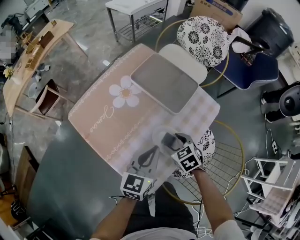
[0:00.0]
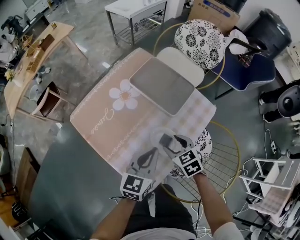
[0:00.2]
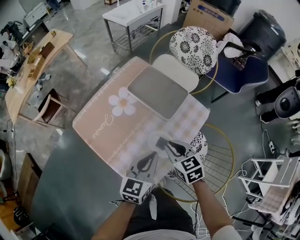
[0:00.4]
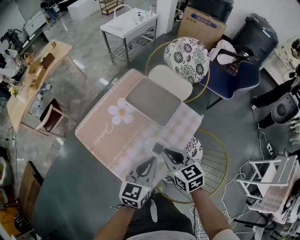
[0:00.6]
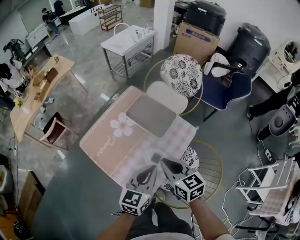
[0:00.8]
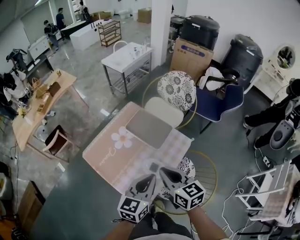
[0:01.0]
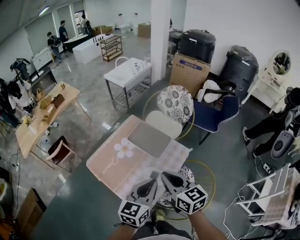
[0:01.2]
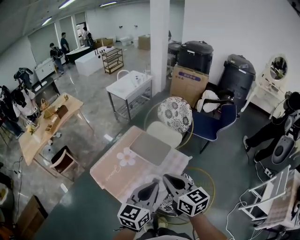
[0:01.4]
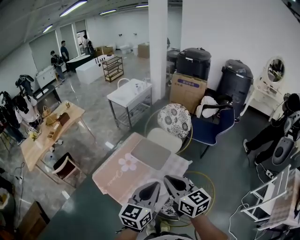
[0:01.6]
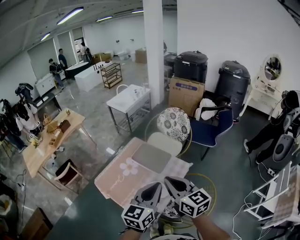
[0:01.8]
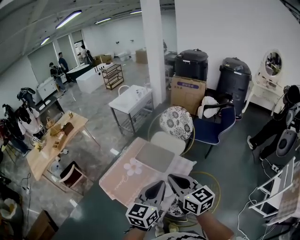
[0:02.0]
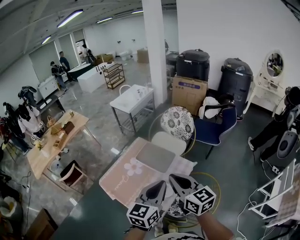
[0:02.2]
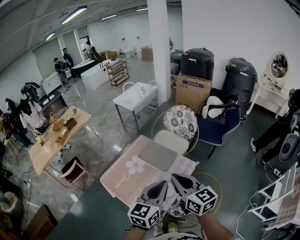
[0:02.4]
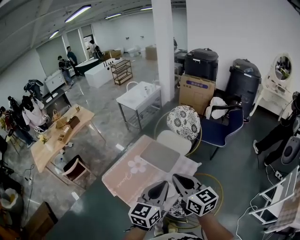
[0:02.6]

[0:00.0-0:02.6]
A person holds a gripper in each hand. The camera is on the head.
0:00.0 to 0:01.2: The left gripper shifts some 25 cm upward. The right gripper moves upward, some 40 cm, angles its fingers upward, by about 40 degrees, and closes its fingers.
0:01.2 to 0:02.6: Both grippers move upward, approximately 10 cm.

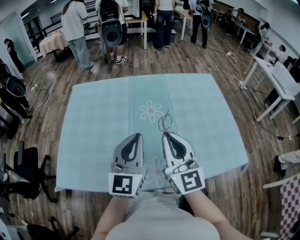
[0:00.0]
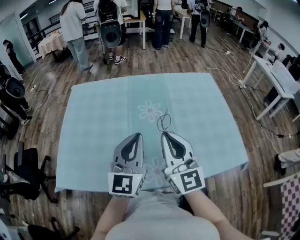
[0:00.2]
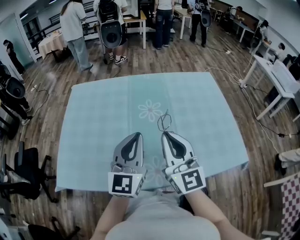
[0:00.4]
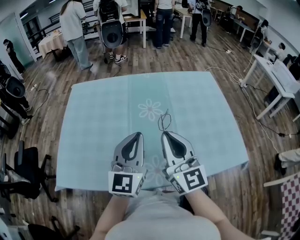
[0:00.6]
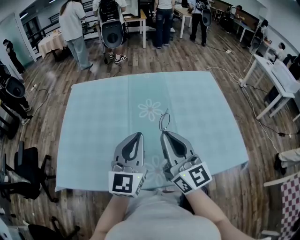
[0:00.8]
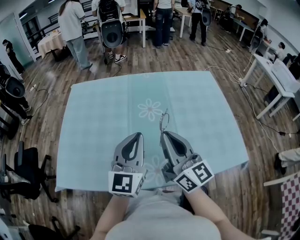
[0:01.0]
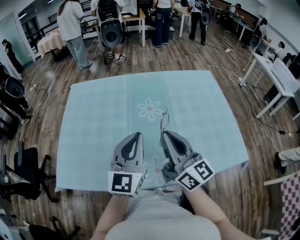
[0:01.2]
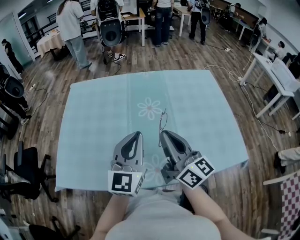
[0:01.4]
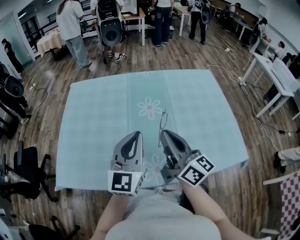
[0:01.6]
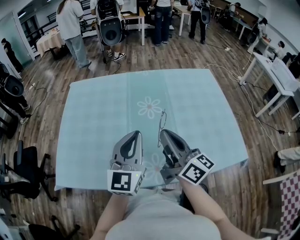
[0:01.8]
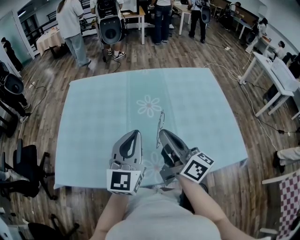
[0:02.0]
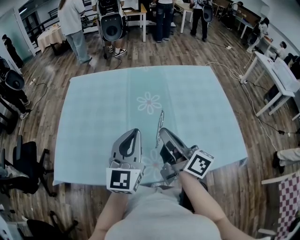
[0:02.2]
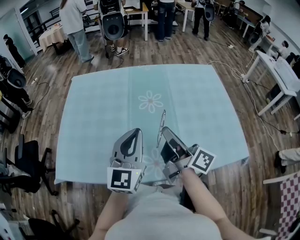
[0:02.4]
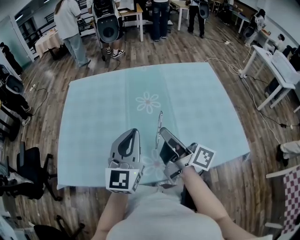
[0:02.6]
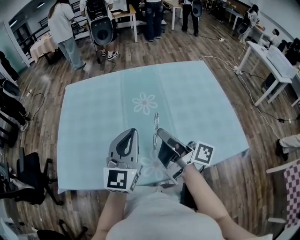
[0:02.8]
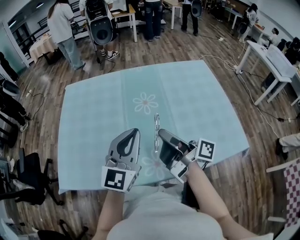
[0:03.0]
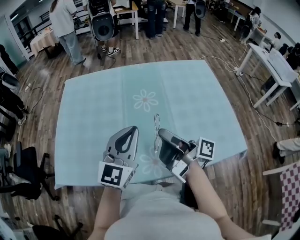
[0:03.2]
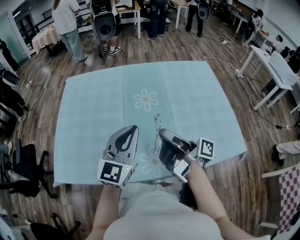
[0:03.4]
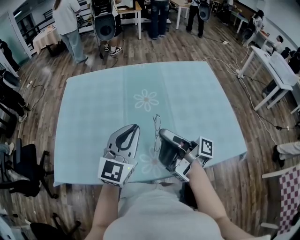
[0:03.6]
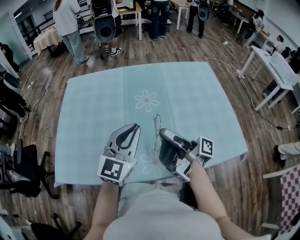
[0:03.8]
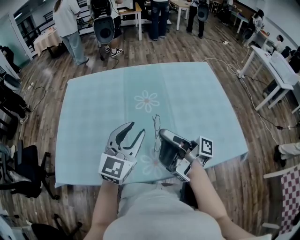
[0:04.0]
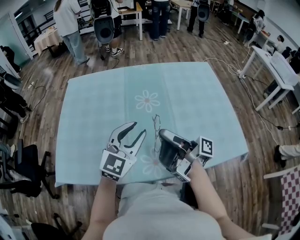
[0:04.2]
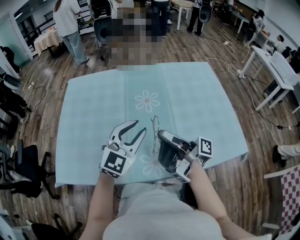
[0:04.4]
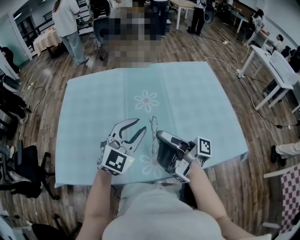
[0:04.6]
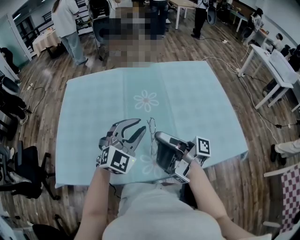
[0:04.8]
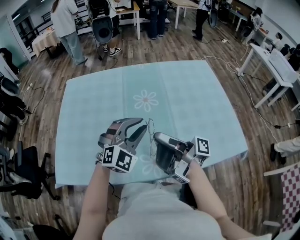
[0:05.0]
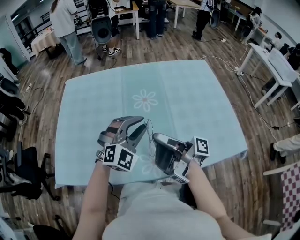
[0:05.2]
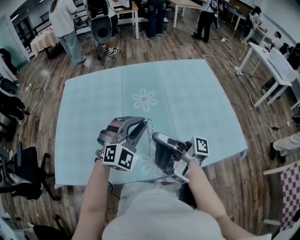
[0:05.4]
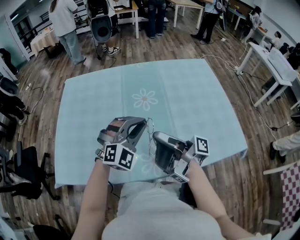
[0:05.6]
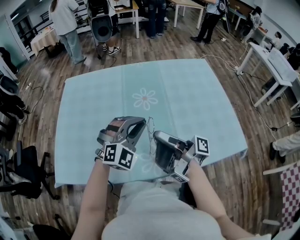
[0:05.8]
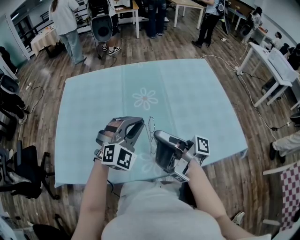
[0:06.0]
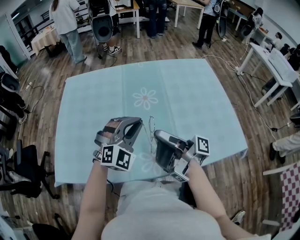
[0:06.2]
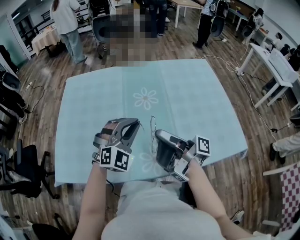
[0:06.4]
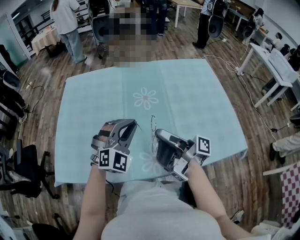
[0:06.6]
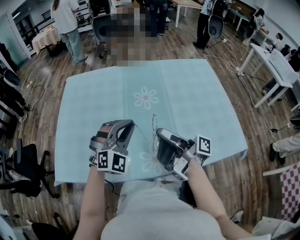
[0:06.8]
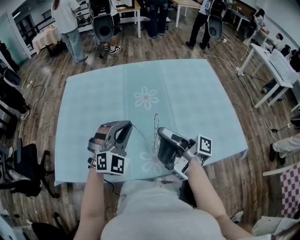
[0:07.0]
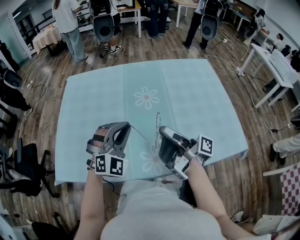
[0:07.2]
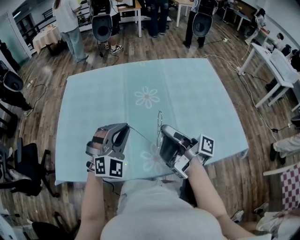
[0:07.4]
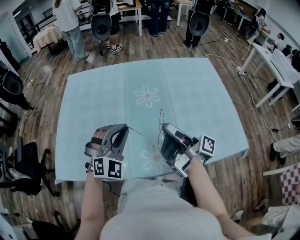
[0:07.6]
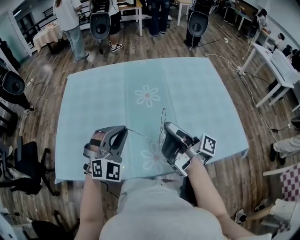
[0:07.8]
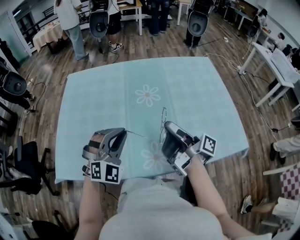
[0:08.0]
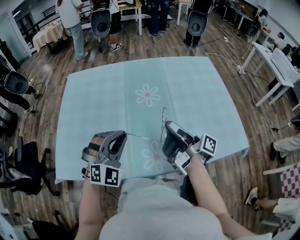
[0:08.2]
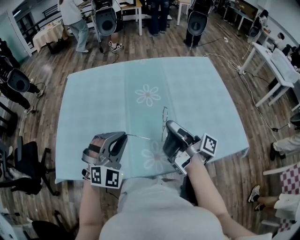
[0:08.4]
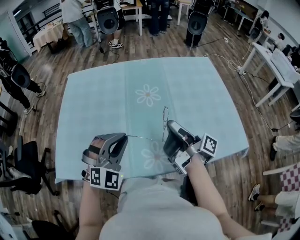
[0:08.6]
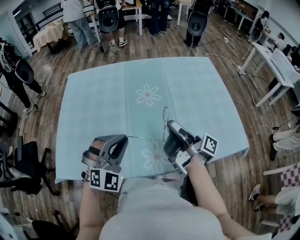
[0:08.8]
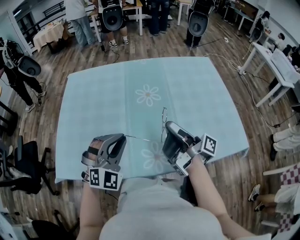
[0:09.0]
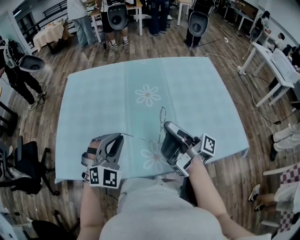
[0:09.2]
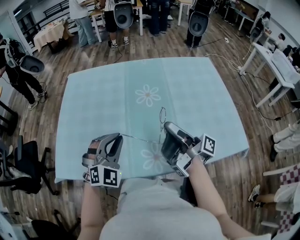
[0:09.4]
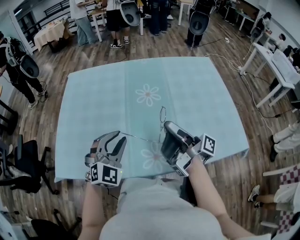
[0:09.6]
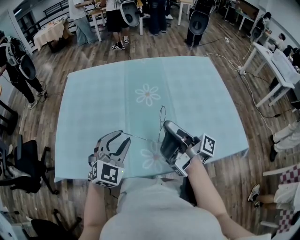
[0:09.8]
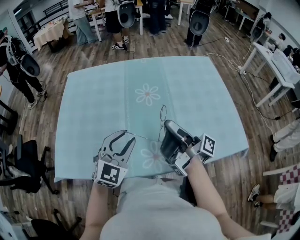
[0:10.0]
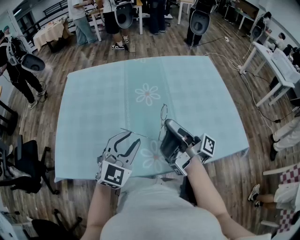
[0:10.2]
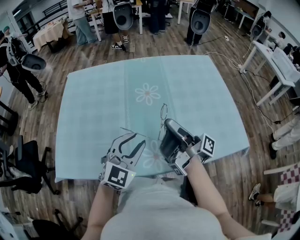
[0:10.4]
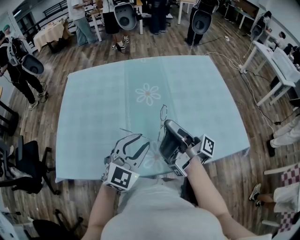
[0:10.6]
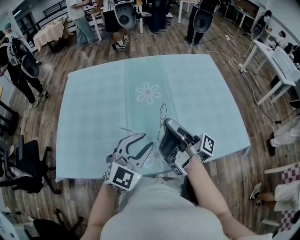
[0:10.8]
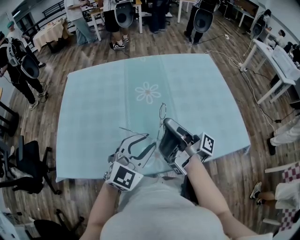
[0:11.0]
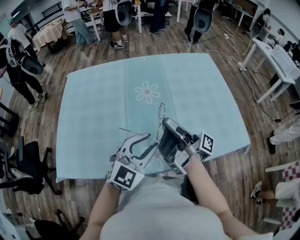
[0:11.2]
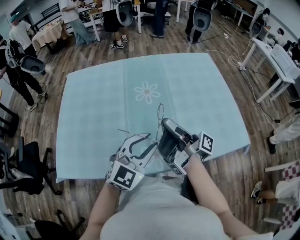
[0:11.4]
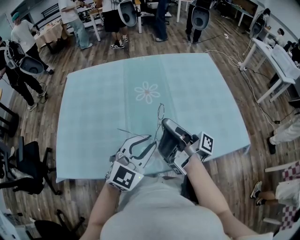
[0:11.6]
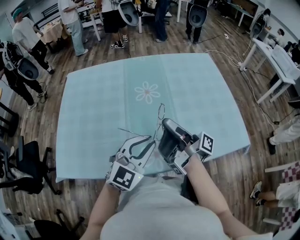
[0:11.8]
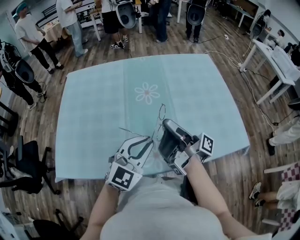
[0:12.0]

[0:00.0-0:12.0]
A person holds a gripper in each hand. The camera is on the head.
0:03.0 to 0:04.4: The left gripper ends up roughly 5 cm from where it was, rotates approximately 20 degrees, and opens up.
0:04.4 to 0:06.0: The left gripper changes its angle by approximately 30 degrees, and closes up.
0:06.0 to 0:07.6: The left gripper moves approximately 10 cm.
0:09.0 to 0:10.4: The left gripper shifts by about 5 cm, changes its angle by roughly 30 degrees, and opens.
0:10.4 to 0:12.0: The left gripper closes.

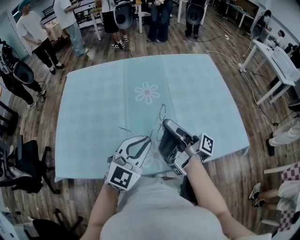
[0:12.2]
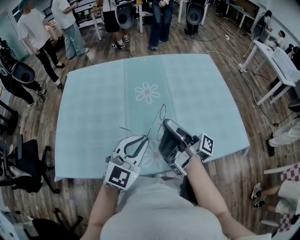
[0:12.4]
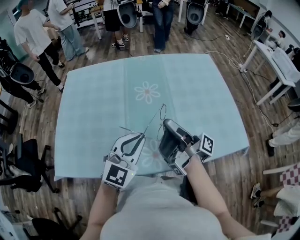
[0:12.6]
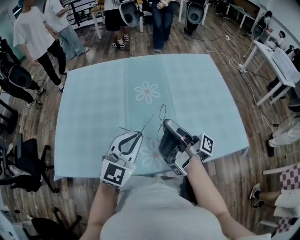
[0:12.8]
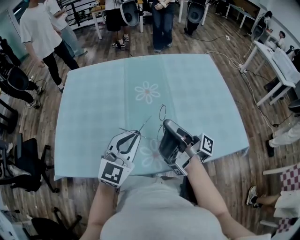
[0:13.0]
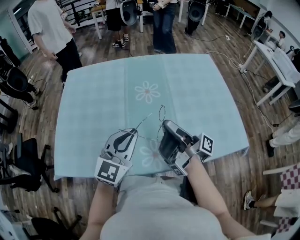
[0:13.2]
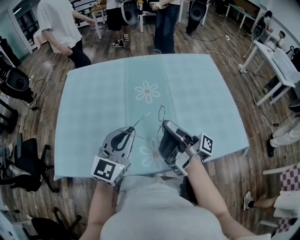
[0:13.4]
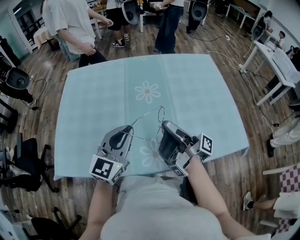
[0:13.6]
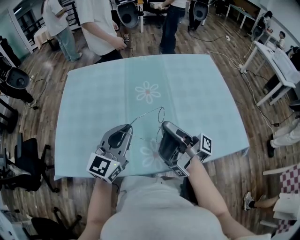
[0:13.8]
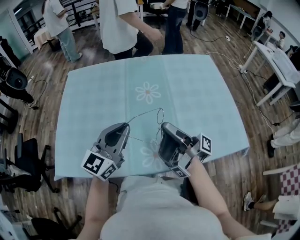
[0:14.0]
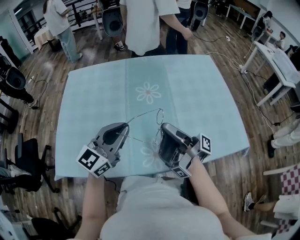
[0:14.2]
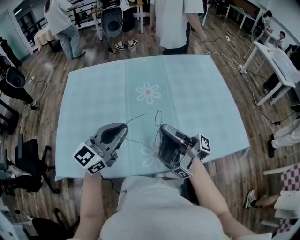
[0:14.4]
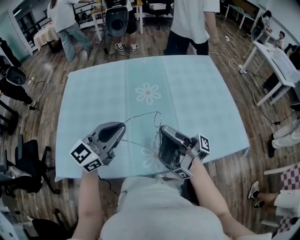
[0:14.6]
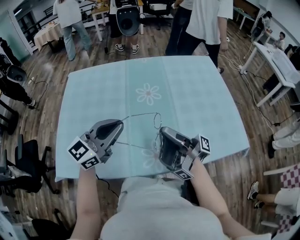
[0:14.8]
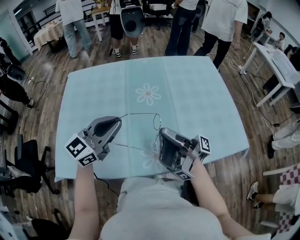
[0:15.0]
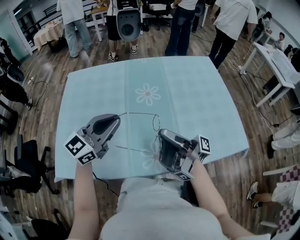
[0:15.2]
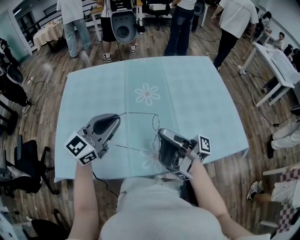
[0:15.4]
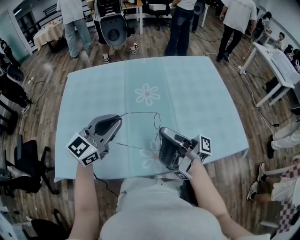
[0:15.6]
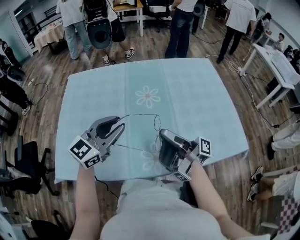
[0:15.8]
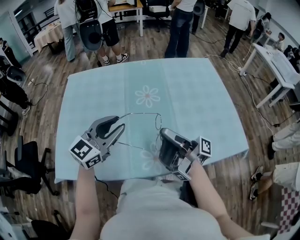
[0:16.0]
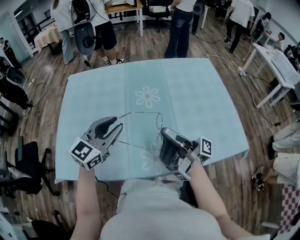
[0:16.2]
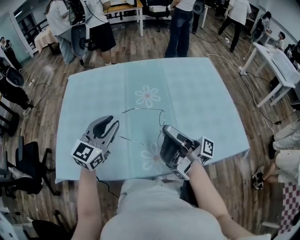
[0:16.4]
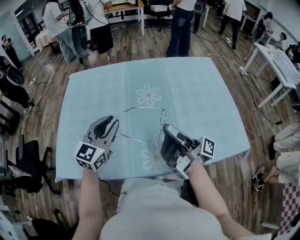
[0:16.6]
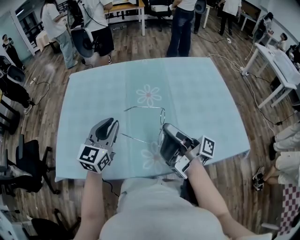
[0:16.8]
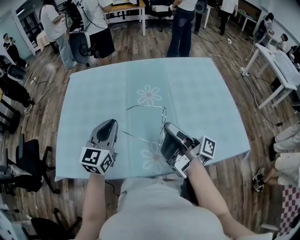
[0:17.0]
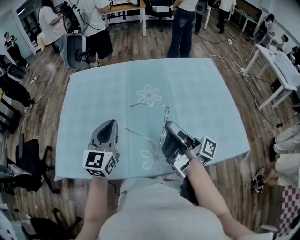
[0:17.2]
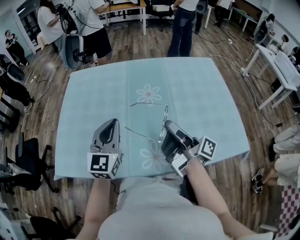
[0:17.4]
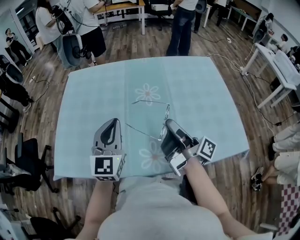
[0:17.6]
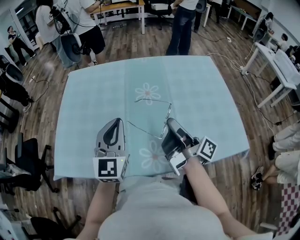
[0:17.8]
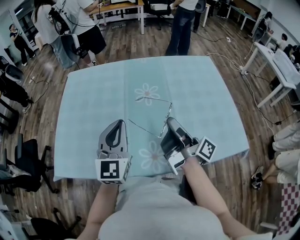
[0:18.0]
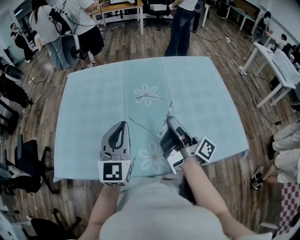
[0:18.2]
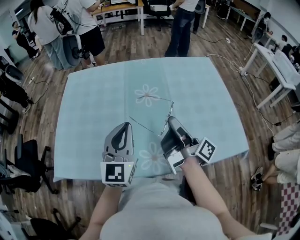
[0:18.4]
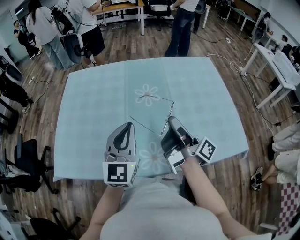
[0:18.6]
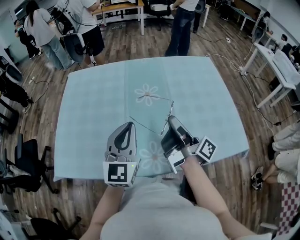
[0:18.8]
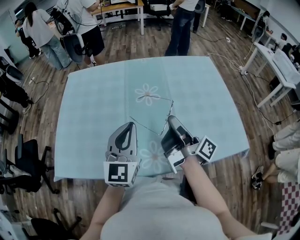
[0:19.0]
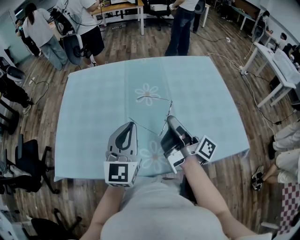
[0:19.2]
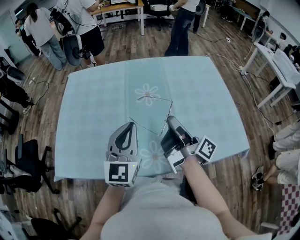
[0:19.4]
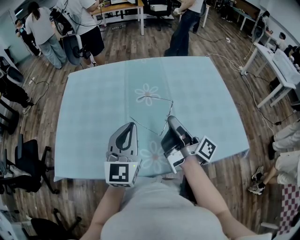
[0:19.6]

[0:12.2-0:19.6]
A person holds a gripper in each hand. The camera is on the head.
0:12.2 to 0:13.6: The left gripper ends up roughly 10 cm from where it was.
0:13.6 to 0:15.2: The left gripper moves about 5 cm.
0:15.2 to 0:16.6: The left gripper shifts by some 5 cm, and swivels some 20 degrees.
0:16.6 to 0:18.2: The left gripper changes place by about 5 cm, and closes up.

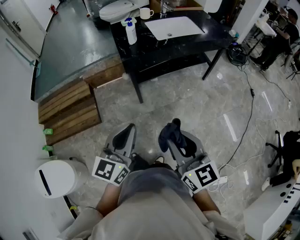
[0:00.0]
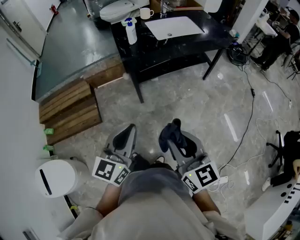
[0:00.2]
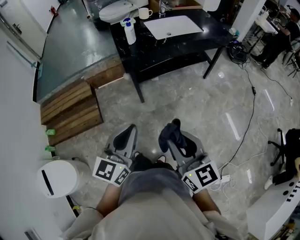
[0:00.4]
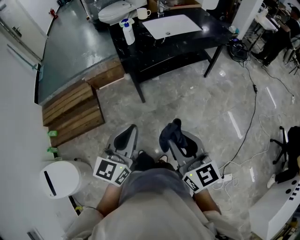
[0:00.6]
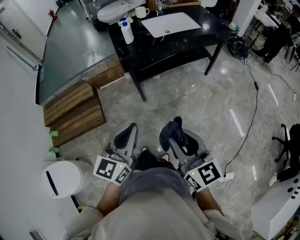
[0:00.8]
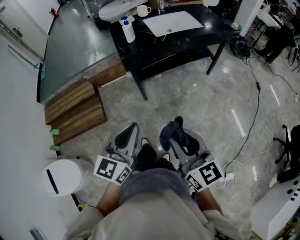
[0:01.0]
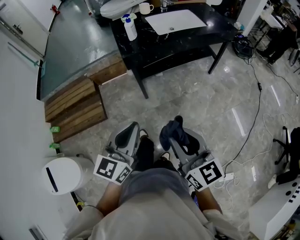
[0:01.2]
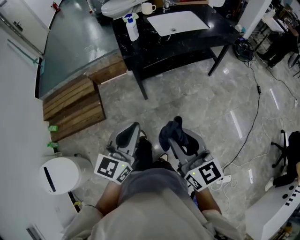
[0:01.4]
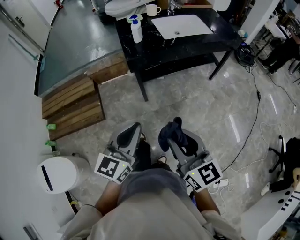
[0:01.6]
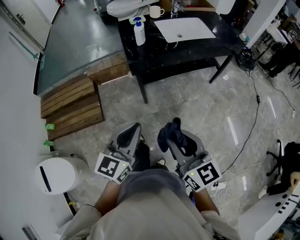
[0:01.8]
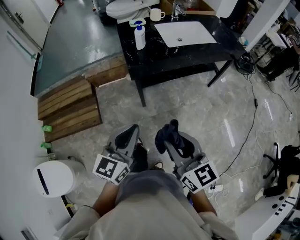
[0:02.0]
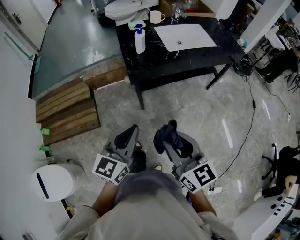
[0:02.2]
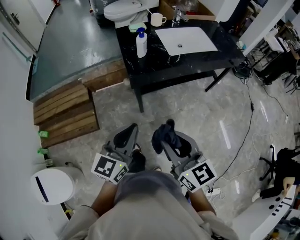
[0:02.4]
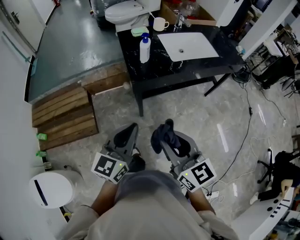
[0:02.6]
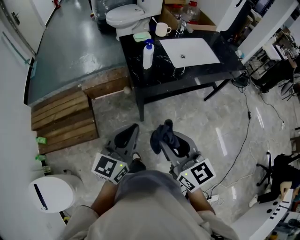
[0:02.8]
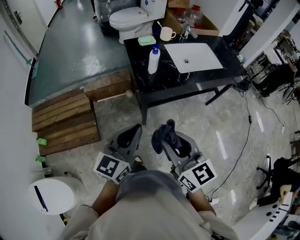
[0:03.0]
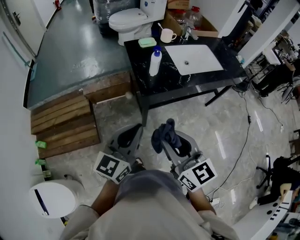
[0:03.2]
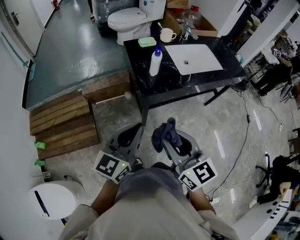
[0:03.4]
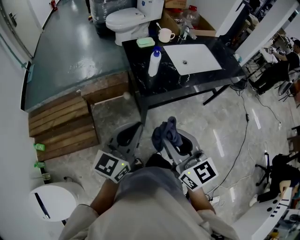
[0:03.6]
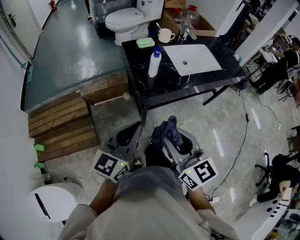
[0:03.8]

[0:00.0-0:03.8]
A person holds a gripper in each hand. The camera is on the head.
0:00.0 to 0:01.2: The grippers make only small movements.
0:01.2 to 0:02.6: Both grippers travel together forward and to the left, about 20 cm.
0:02.6 to 0:03.8: The grippers both shift forward and to the left by some 10 cm.
